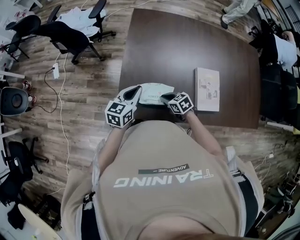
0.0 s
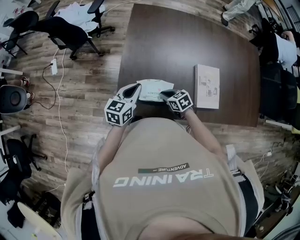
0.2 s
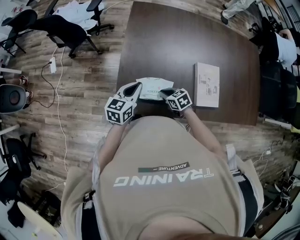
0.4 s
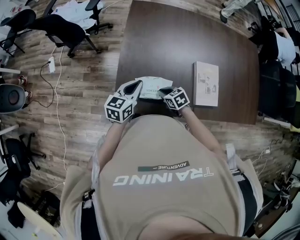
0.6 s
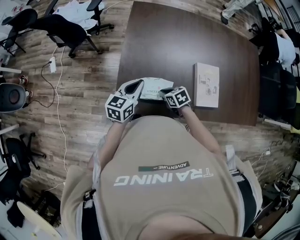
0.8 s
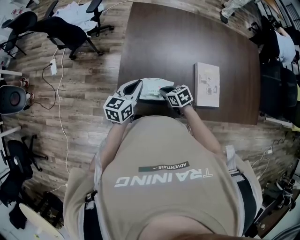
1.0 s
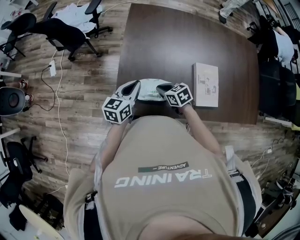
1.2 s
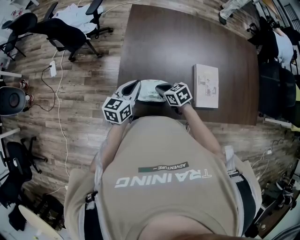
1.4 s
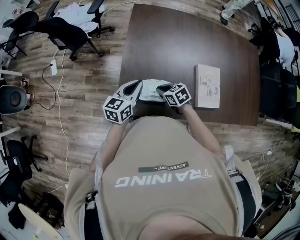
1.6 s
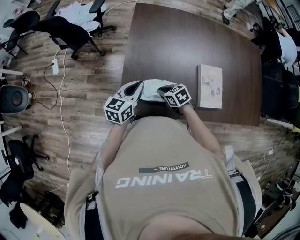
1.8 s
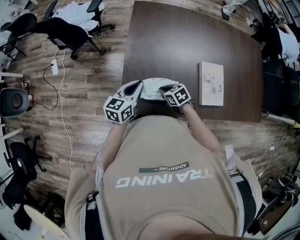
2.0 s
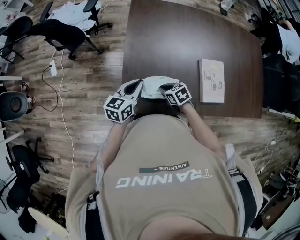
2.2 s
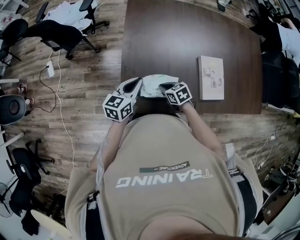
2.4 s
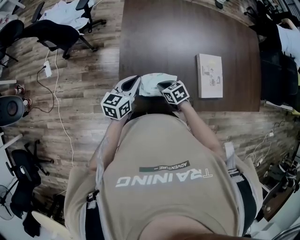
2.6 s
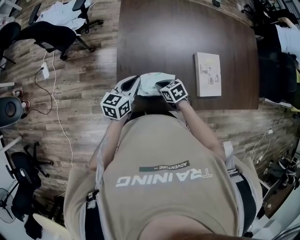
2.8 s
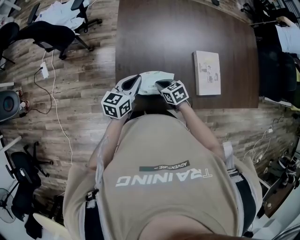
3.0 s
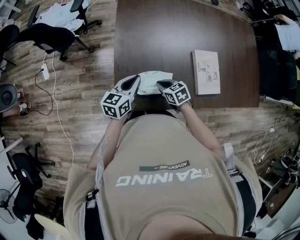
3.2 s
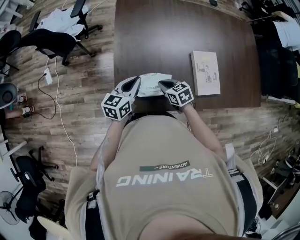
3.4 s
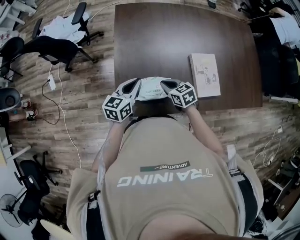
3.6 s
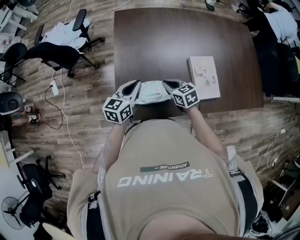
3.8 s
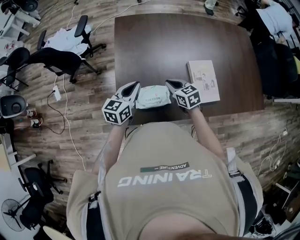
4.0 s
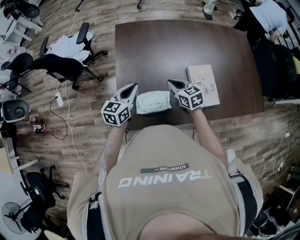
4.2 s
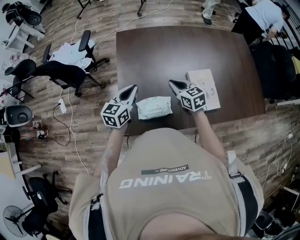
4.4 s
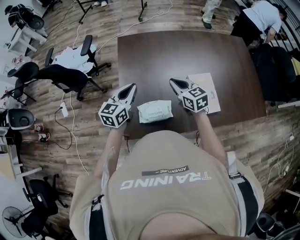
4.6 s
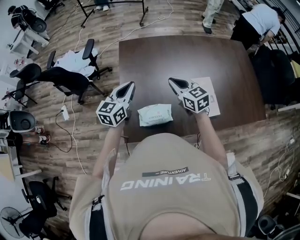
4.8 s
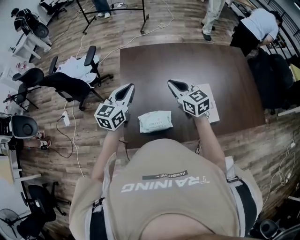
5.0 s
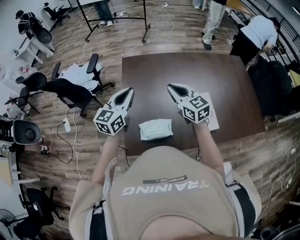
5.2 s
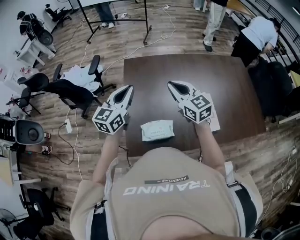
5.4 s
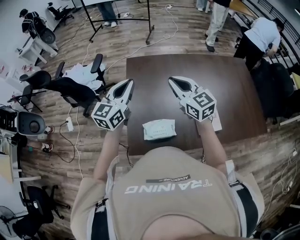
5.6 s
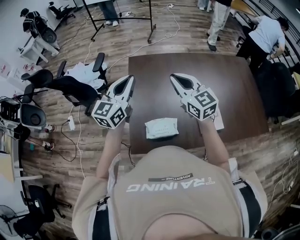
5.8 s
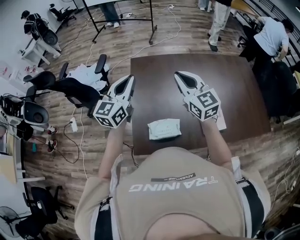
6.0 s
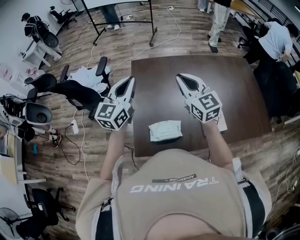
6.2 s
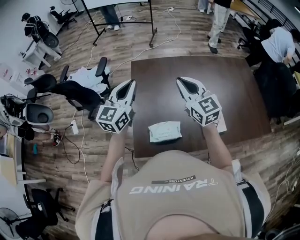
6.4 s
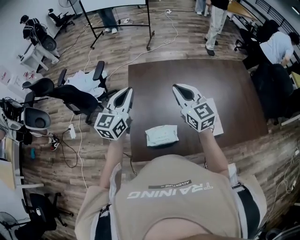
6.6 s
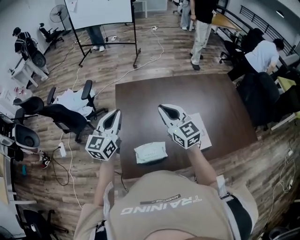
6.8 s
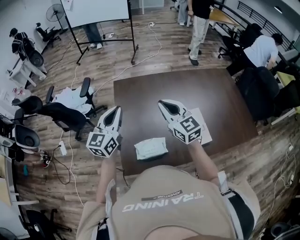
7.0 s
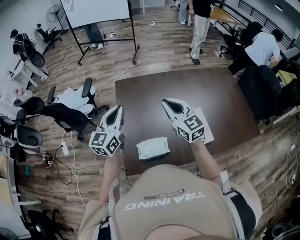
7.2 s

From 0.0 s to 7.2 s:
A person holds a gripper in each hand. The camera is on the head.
From 0.0 s to 1.4 s: The right gripper moves some 5 cm.
From 1.4 s to 2.8 s: The right gripper shifts about 5 cm downward.
From 2.8 s to 4.4 s: The left gripper travels upward by roughly 10 cm; the right gripper heads upward, to the right and forward, covering roughly 20 cm, and changes its angle by about 30 degrees.
From 4.4 s to 5.8 s: Both grippers travel together upward, approximately 20 cm. The right gripper swivels roughly 30 degrees; the left gripper swivels about 20 degrees.
From 5.8 s to 7.2 s: The grippers stay close to where they were, moving slightly.

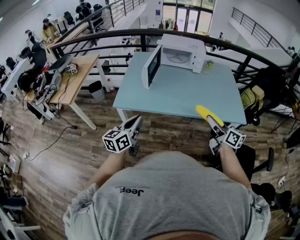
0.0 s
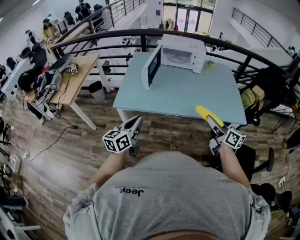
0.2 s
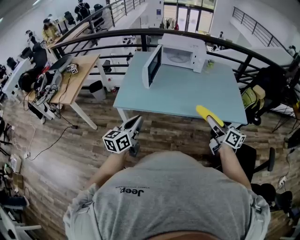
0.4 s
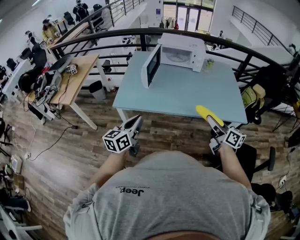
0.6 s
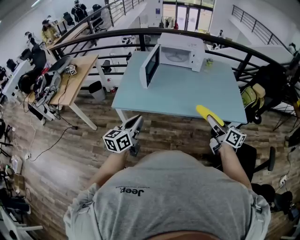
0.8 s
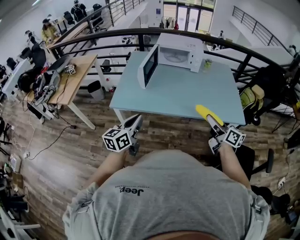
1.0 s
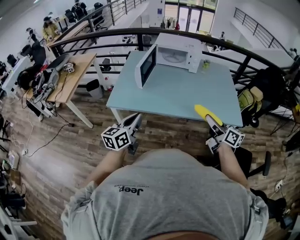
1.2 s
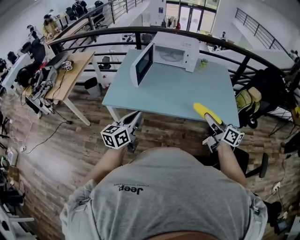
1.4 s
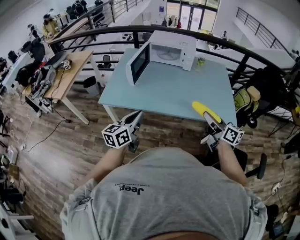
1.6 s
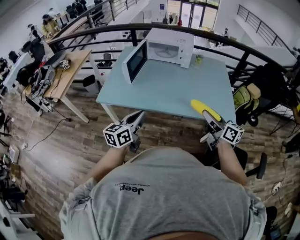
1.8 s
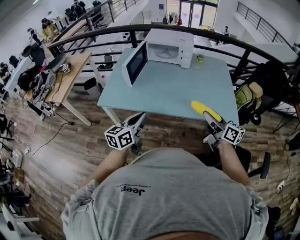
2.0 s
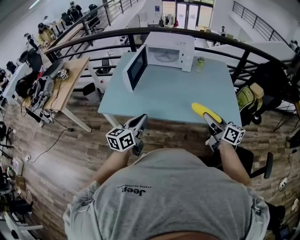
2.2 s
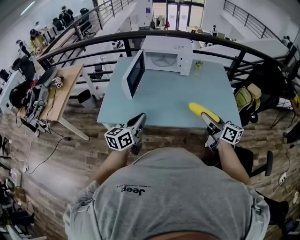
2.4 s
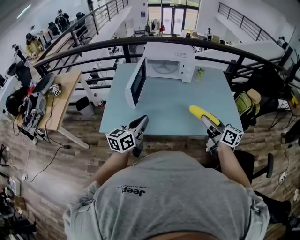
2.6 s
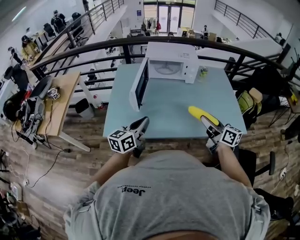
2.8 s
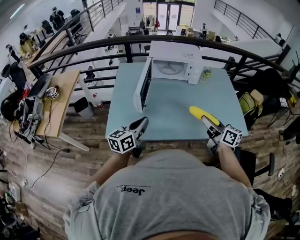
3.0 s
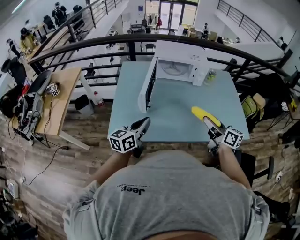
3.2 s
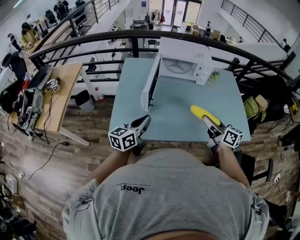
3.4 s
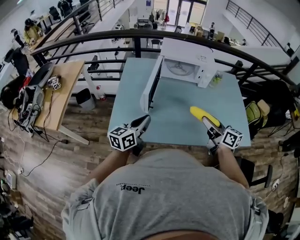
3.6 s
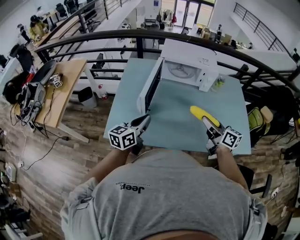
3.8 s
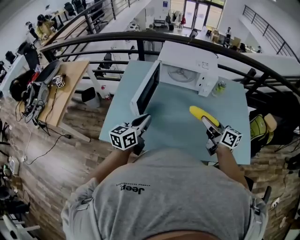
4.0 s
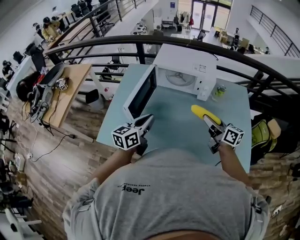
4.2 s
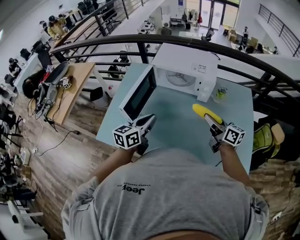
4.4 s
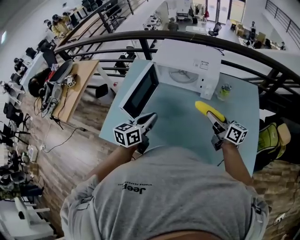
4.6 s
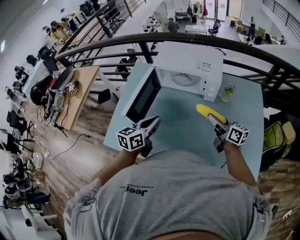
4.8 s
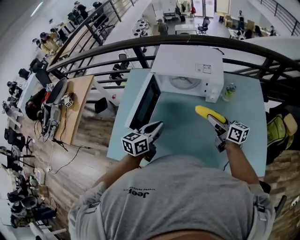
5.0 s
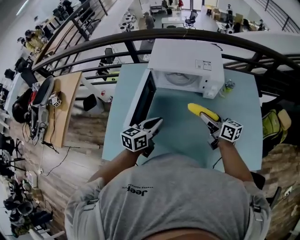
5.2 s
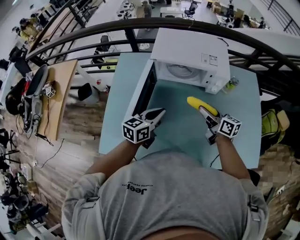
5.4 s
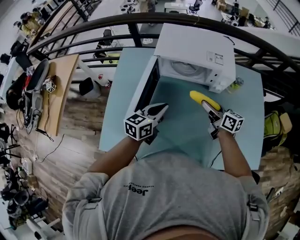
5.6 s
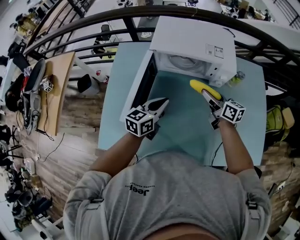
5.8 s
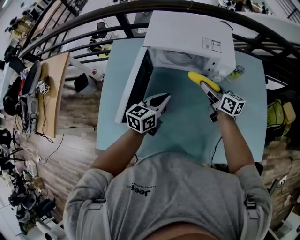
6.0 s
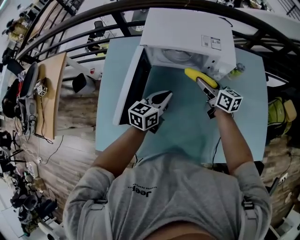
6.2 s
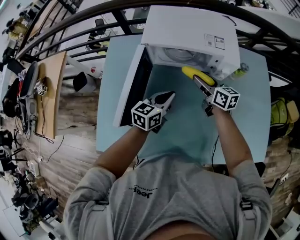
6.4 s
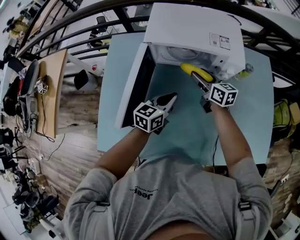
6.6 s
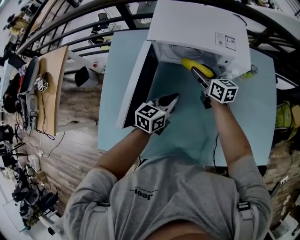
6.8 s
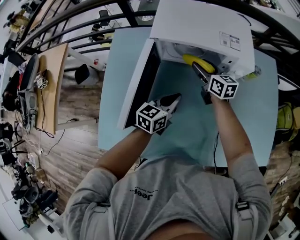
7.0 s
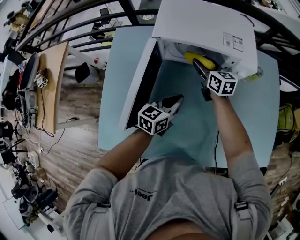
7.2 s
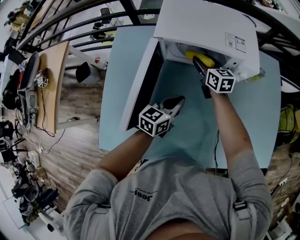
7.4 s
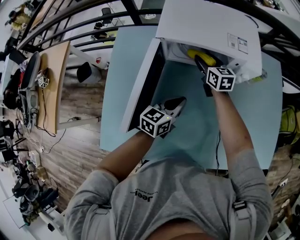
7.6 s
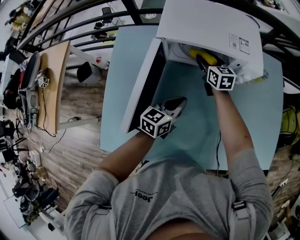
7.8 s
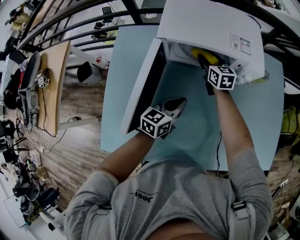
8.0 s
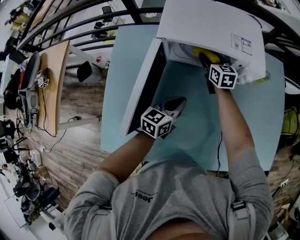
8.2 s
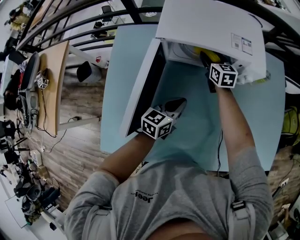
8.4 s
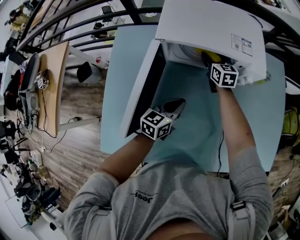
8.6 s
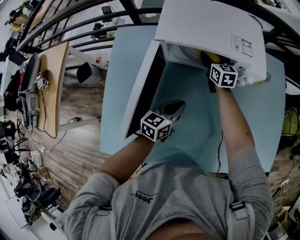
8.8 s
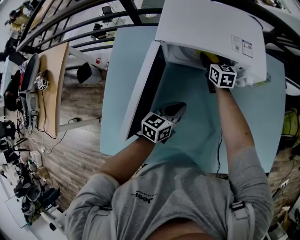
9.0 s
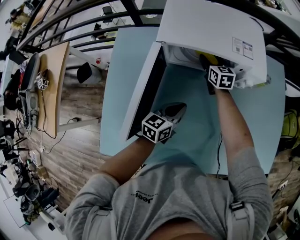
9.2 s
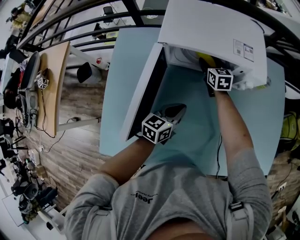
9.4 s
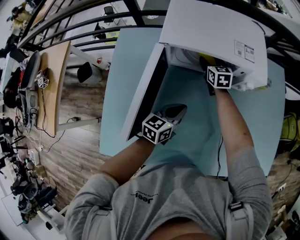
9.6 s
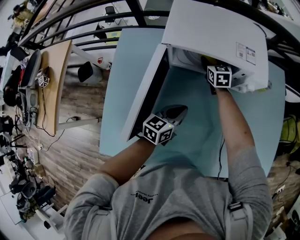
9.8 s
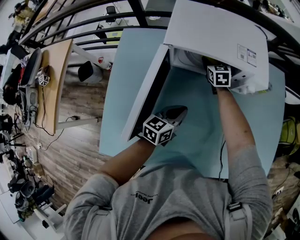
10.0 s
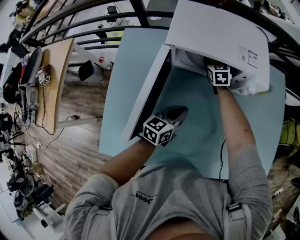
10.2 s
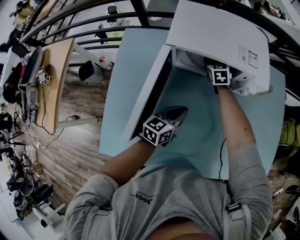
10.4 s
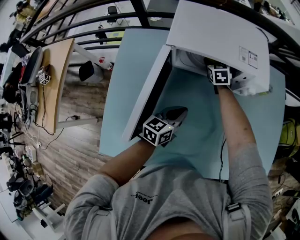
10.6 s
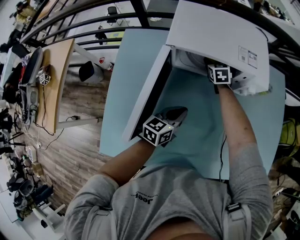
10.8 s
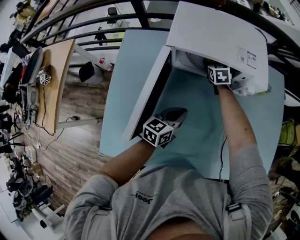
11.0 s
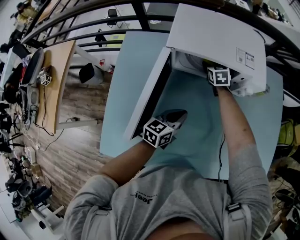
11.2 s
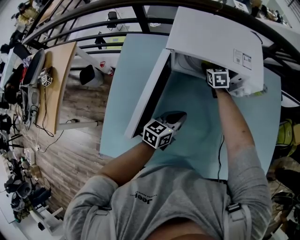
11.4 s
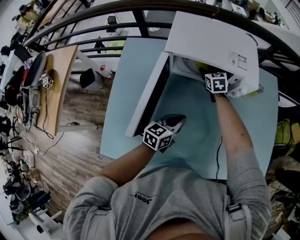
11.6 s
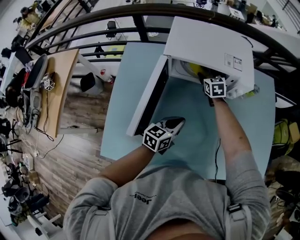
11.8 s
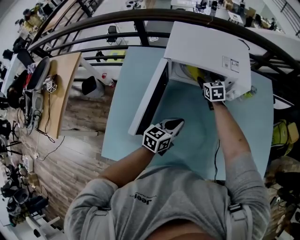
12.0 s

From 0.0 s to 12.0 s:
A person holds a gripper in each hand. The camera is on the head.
From 0.0 s to 1.6 s: Both grippers move to the right, some 10 cm.
From 1.6 s to 3.0 s: Both grippers move forward and to the left, roughly 25 cm.
From 3.0 s to 4.4 s: The grippers both shift forward and to the right by roughly 25 cm.
From 4.4 s to 6.0 s: The right gripper moves forward, downward and to the left, some 20 cm. The left gripper travels forward and downward by some 20 cm.
From 6.0 s to 7.6 s: The left gripper is displaced downward by roughly 5 cm. Meanwhile the right gripper heads forward, to the left and downward, covering about 20 cm, and swivels approximately 20 degrees.
From 7.6 s to 9.0 s: The right gripper shifts by approximately 5 cm.
From 9.0 s to 10.4 s: The right gripper changes its angle by about 20 degrees.
From 10.4 s to 12.0 s: The left gripper changes place by some 5 cm. The right gripper travels backward by roughly 5 cm.

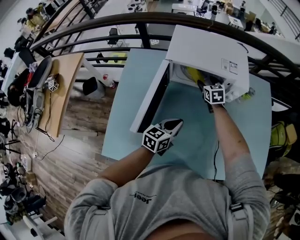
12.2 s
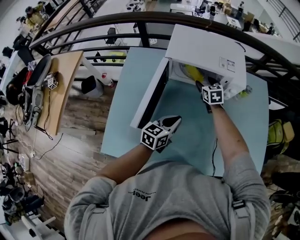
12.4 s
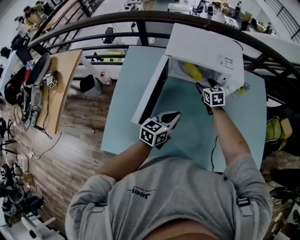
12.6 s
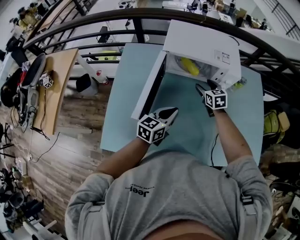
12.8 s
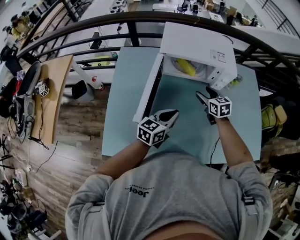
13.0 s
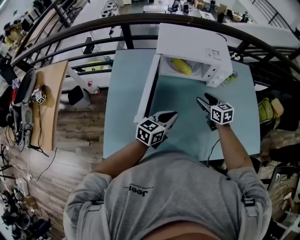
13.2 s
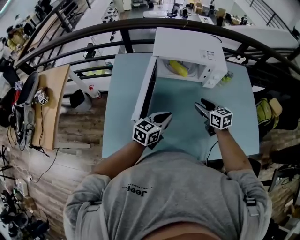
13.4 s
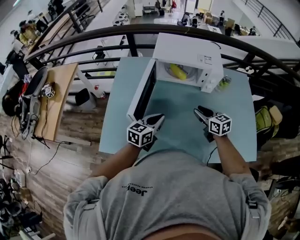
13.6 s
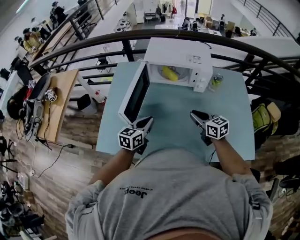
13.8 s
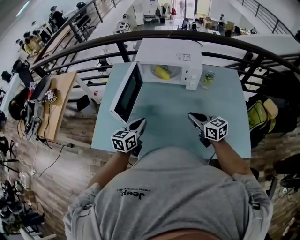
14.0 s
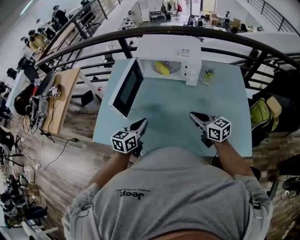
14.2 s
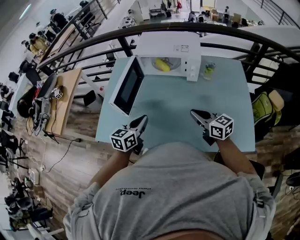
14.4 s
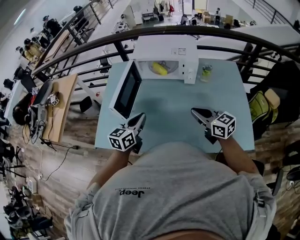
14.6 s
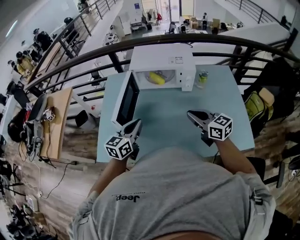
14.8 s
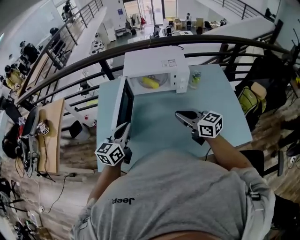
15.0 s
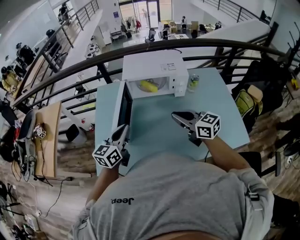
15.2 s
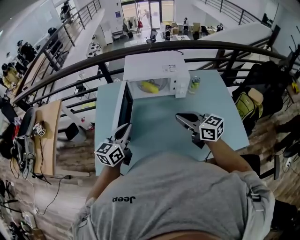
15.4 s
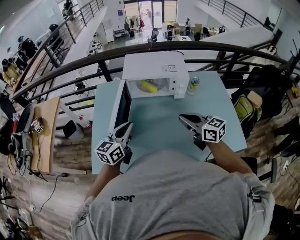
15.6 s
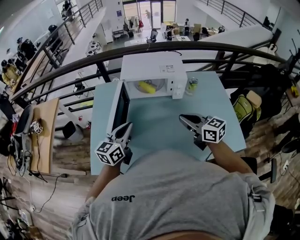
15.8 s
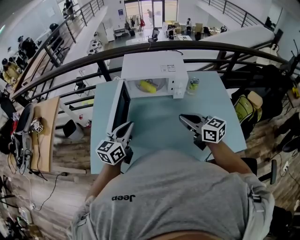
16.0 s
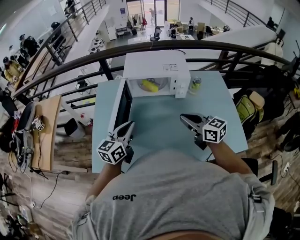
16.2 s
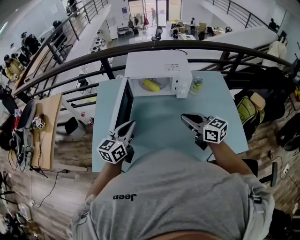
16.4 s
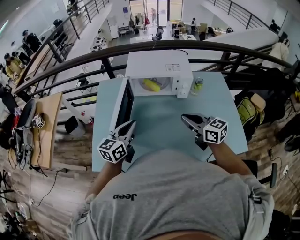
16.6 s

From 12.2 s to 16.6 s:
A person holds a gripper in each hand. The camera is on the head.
From 12.2 s to 13.6 s: The left gripper is displaced backward and upward by approximately 10 cm; the right gripper shifts some 25 cm backward, rotates some 20 degrees, and closes its fingers.
From 13.6 s to 15.2 s: The right gripper goes about 15 cm upward and backward, and closes; the left gripper moves upward and to the left, about 15 cm.
From 15.2 s to 16.6 s: The grippers make only small movements.
